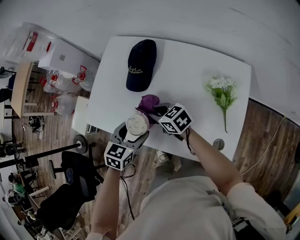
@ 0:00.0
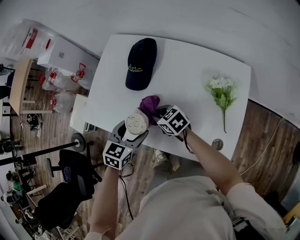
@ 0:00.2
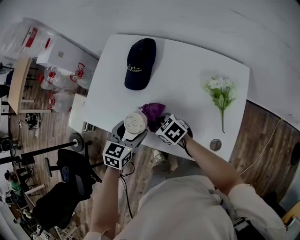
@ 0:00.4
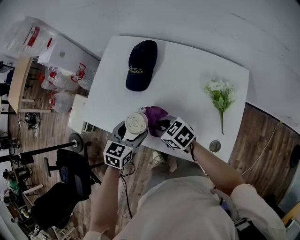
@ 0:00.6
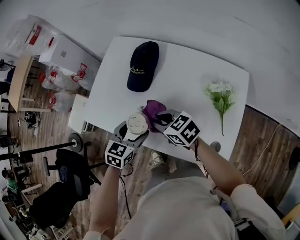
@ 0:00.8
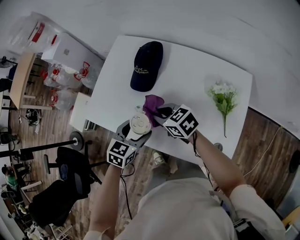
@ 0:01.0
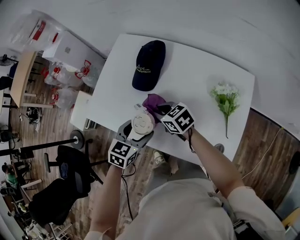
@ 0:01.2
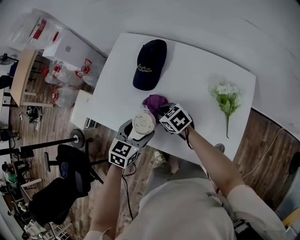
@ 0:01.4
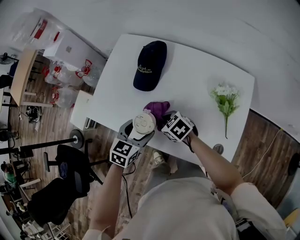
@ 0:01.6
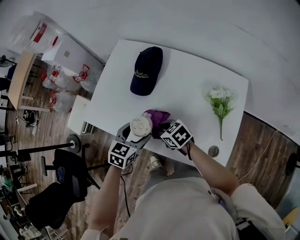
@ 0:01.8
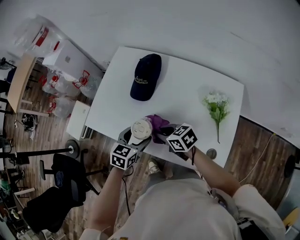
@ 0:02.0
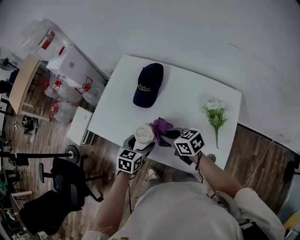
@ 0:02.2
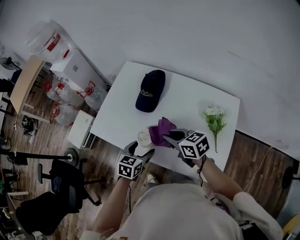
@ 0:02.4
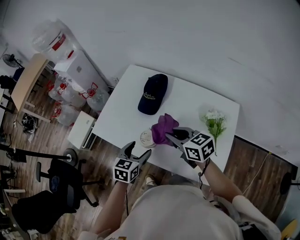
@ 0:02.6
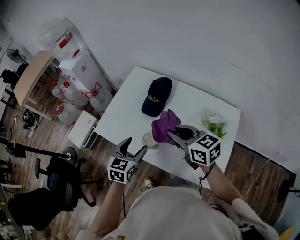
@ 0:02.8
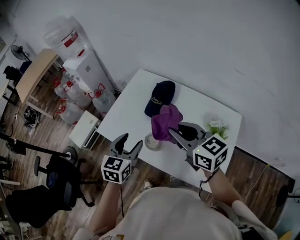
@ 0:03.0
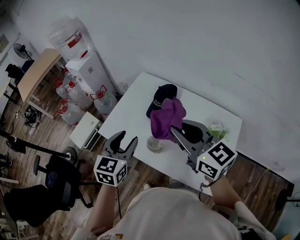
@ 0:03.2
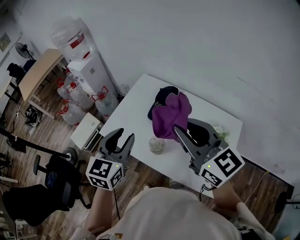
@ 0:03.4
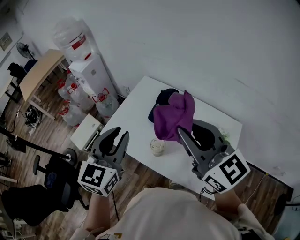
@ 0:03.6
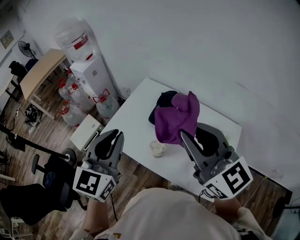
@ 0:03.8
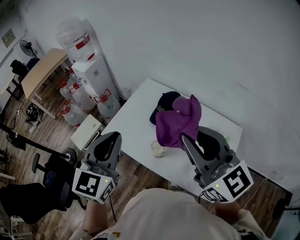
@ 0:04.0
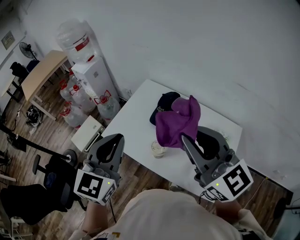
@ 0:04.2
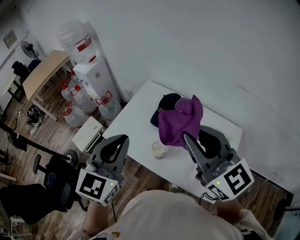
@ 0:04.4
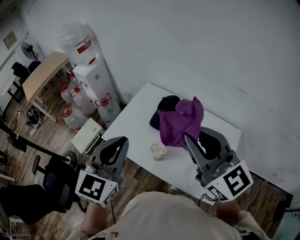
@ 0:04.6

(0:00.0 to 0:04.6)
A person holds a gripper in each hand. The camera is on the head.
0:00.0 - 0:01.6: The right gripper goes up and down, some 10 cm each way, reversing 2 times, and rotates roughly 20 degrees.
0:01.6 - 0:03.0: The left gripper is displaced upward and to the left by some 15 cm, and rotates approximately 20 degrees, while the right gripper goes some 30 cm upward, and points its fingers approximately 30 degrees further upward.
0:03.0 - 0:04.6: The grippers both shift upward by roughly 20 cm. The right gripper changes its angle by approximately 30 degrees, while the left gripper swivels roughly 20 degrees, and closes.

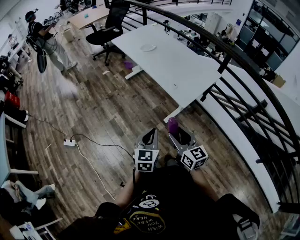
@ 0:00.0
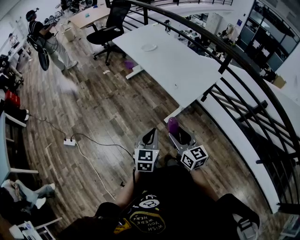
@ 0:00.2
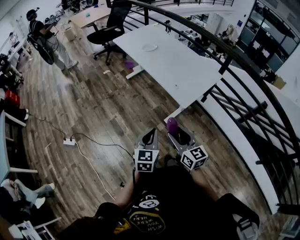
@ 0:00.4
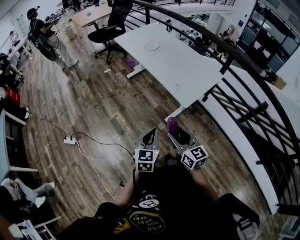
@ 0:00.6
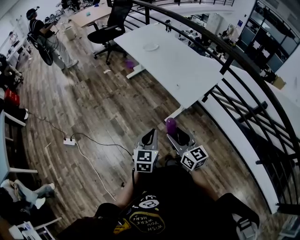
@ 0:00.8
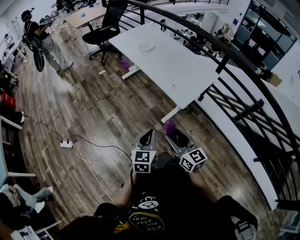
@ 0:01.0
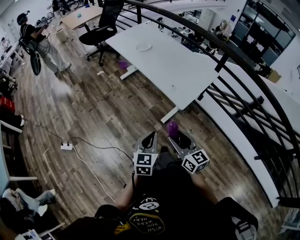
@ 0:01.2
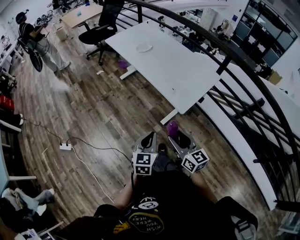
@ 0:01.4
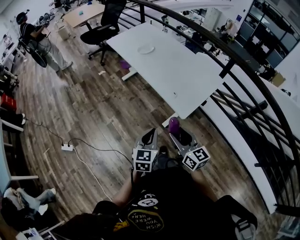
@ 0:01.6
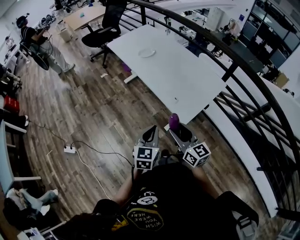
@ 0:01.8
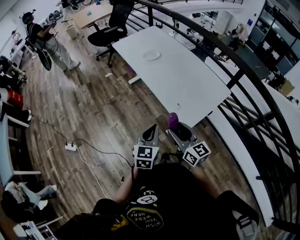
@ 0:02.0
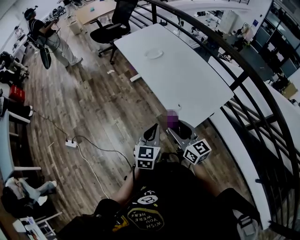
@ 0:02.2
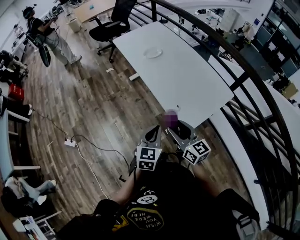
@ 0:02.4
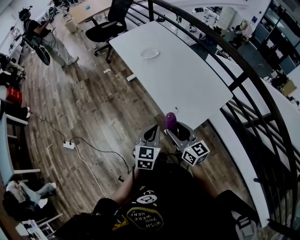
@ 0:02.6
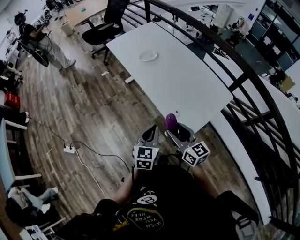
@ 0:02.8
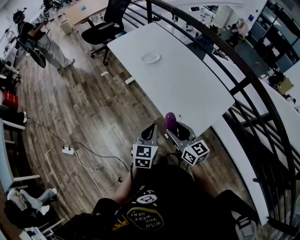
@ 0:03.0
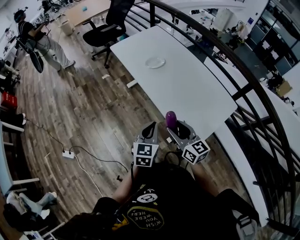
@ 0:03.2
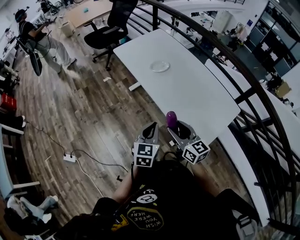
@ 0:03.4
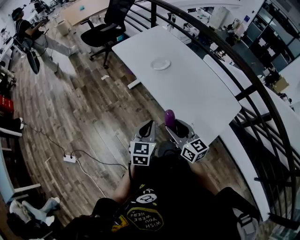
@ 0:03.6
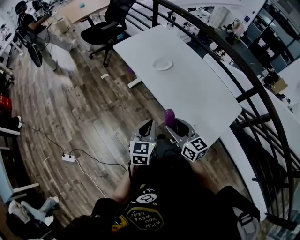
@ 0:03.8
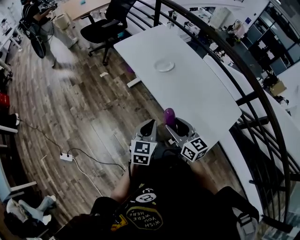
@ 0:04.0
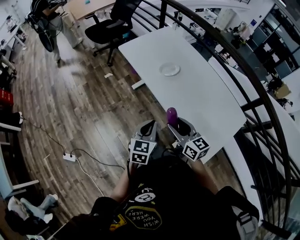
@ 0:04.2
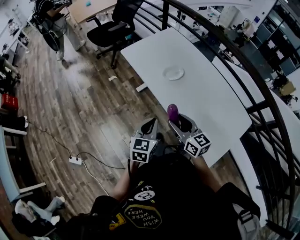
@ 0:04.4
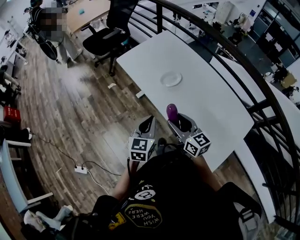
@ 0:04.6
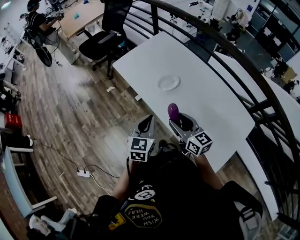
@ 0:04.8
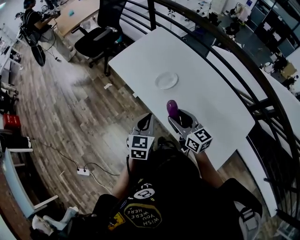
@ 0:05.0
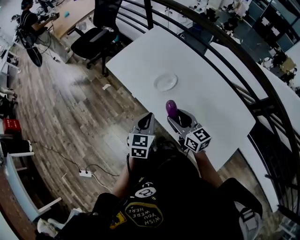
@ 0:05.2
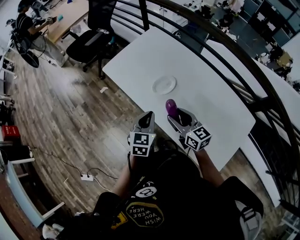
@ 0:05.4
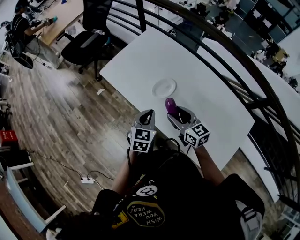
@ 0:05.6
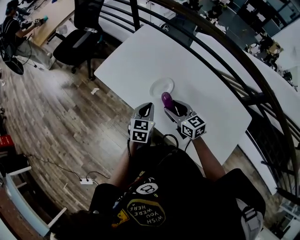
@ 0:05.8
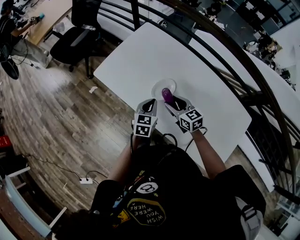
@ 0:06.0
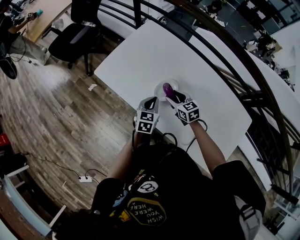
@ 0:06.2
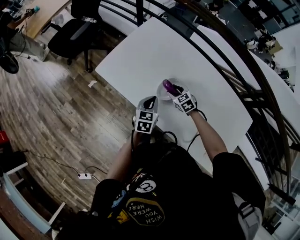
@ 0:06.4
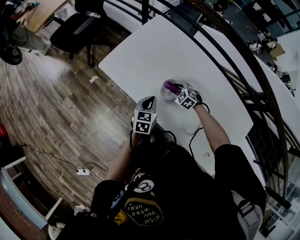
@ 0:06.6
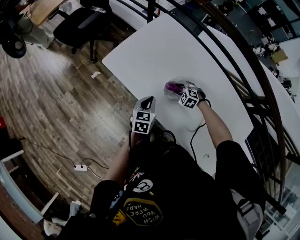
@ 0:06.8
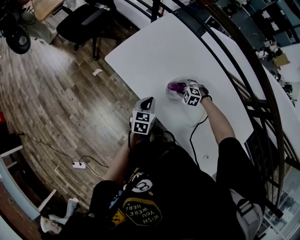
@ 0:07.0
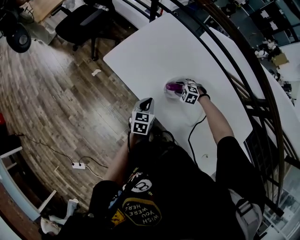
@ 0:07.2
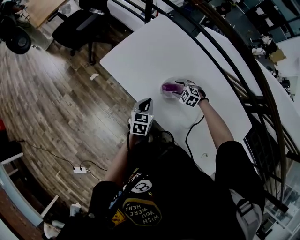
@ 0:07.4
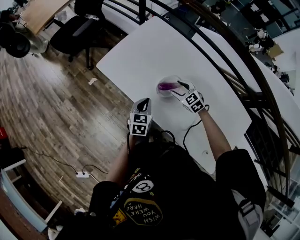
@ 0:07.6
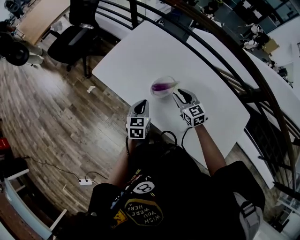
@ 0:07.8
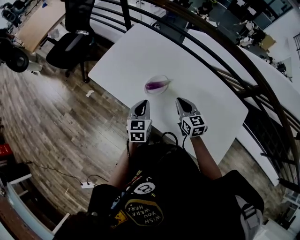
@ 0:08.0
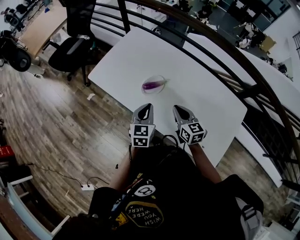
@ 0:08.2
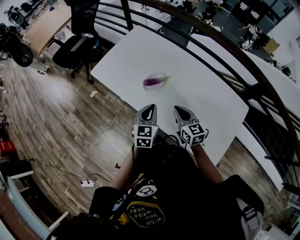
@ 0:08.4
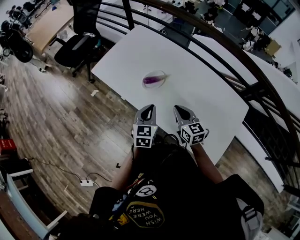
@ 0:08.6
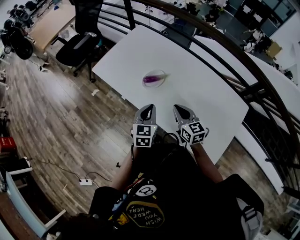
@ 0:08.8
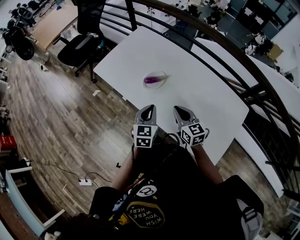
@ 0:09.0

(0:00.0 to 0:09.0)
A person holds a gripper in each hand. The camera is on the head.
0:00.0 - 0:01.6: The grippers both shift forward by approximately 10 cm.
0:01.6 - 0:03.0: Both grippers move forward, some 25 cm.
0:03.0 - 0:04.4: Both grippers travel together forward and to the left, some 30 cm.
0:04.4 - 0:06.0: Both grippers travel together forward, roughly 35 cm.
0:06.0 - 0:07.6: The right gripper goes about 10 cm downward and forward, and swivels roughly 30 degrees. The left gripper moves to the left, roughly 5 cm.
0:07.6 - 0:09.0: The right gripper heads backward and upward, covering some 25 cm, swivels about 40 degrees, and closes up; the left gripper moves backward, to the right and upward, about 20 cm.

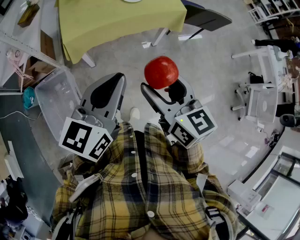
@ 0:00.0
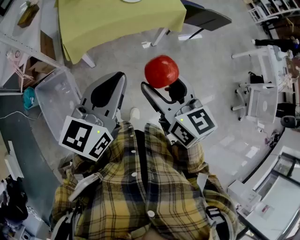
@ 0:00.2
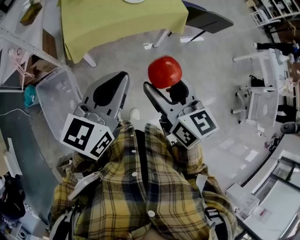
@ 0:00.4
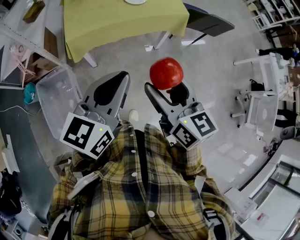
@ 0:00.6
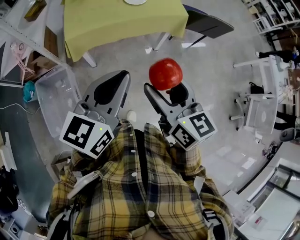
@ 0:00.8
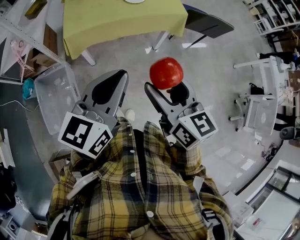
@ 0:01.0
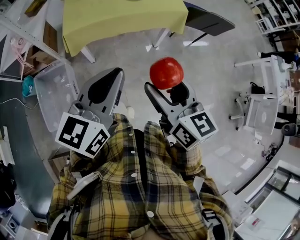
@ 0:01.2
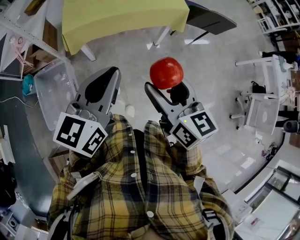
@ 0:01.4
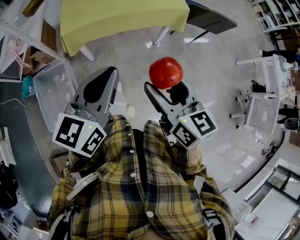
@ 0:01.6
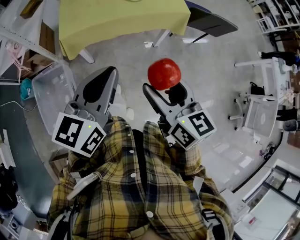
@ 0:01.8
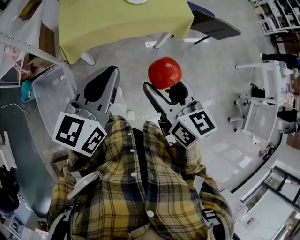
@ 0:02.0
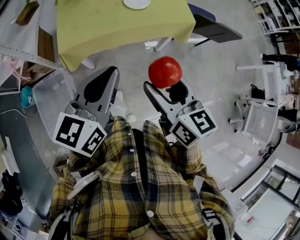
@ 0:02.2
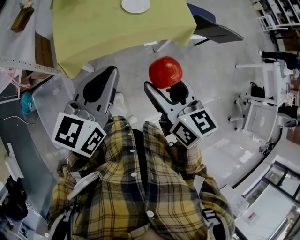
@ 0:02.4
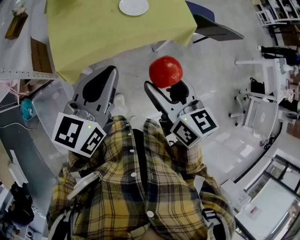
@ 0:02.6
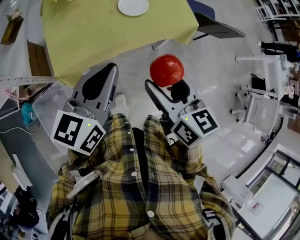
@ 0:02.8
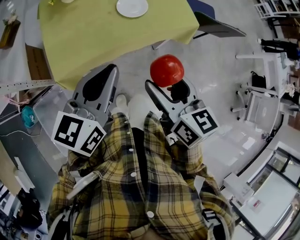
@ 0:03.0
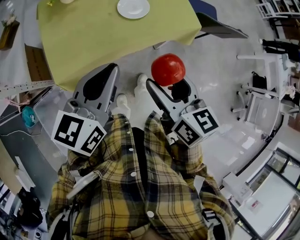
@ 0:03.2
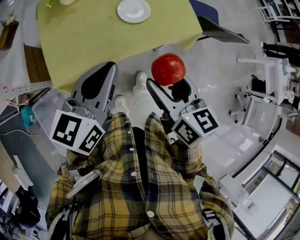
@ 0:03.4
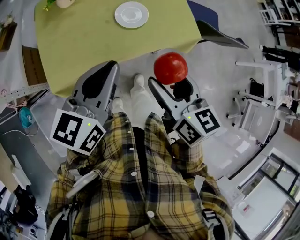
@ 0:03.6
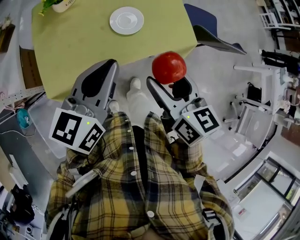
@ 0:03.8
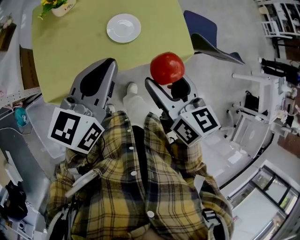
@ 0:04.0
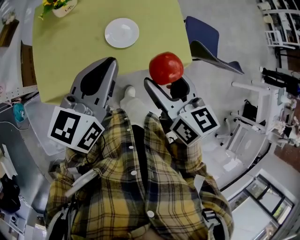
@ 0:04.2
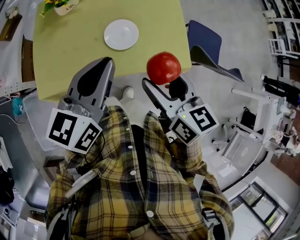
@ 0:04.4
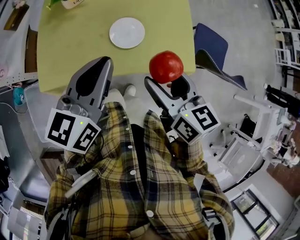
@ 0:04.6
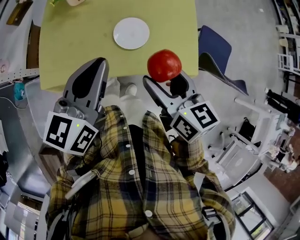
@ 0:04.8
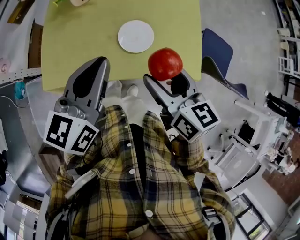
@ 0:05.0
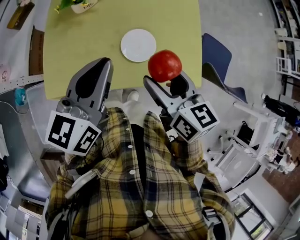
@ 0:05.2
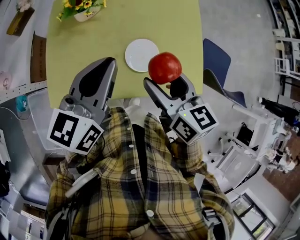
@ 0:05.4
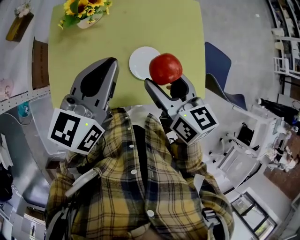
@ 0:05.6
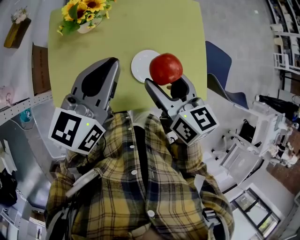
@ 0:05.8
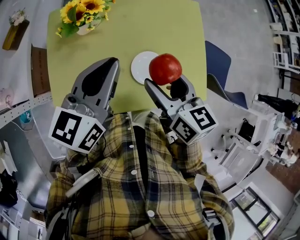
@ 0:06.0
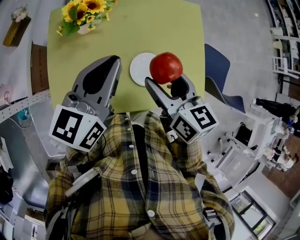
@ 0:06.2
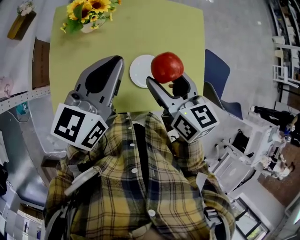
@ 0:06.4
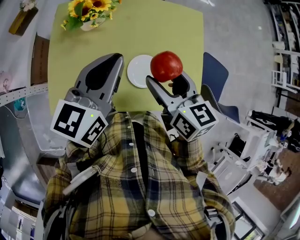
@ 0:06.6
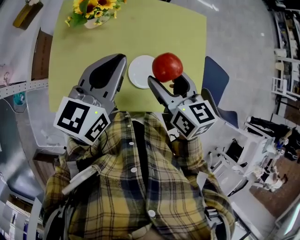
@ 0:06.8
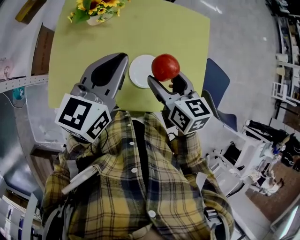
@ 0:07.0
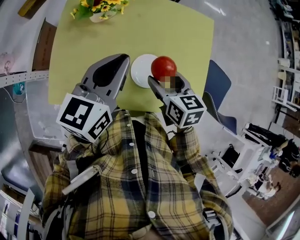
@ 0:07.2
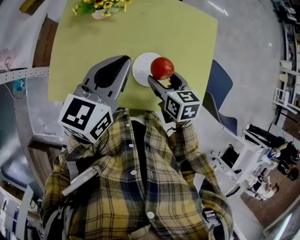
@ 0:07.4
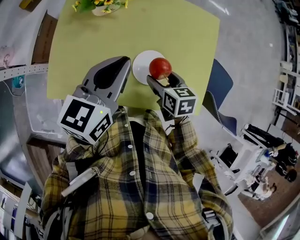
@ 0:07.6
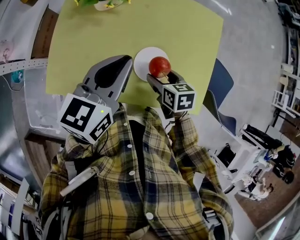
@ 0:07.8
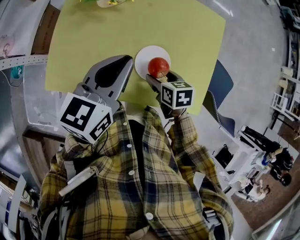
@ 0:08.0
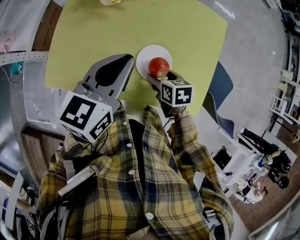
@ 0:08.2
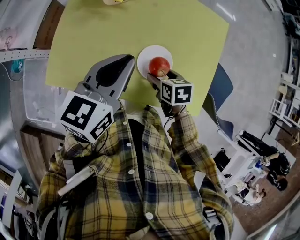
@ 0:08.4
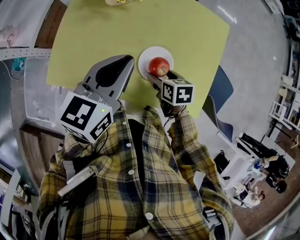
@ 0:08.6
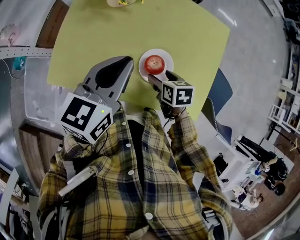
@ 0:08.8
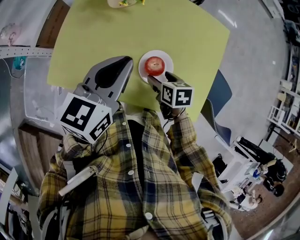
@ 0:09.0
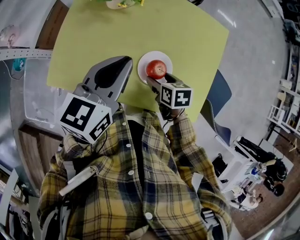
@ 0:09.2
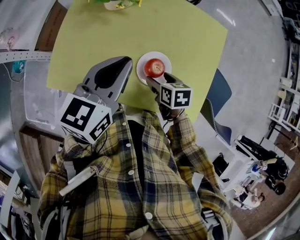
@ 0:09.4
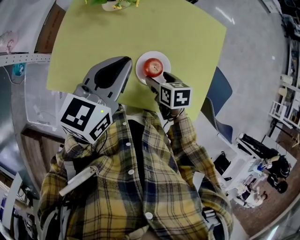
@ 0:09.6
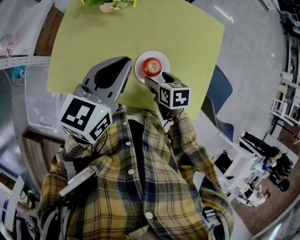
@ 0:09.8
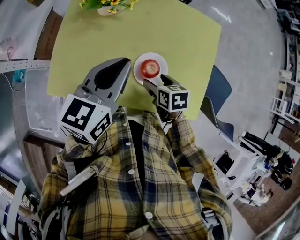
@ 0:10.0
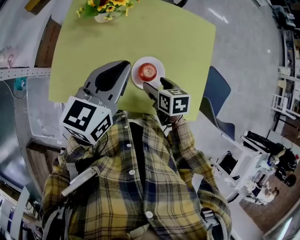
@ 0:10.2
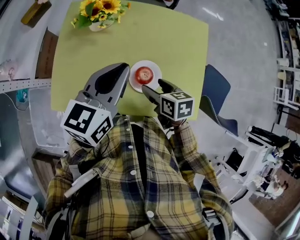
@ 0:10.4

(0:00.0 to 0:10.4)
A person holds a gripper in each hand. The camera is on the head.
0:00.0 - 0:01.4: The right gripper travels to the right by roughly 5 cm.
0:01.4 - 0:03.0: The two grippers go some 30 cm forward.
0:03.0 - 0:04.4: The grippers both shift forward and to the right by approximately 20 cm.
0:04.4 - 0:06.0: Both grippers move forward and to the left, roughly 20 cm.
0:06.0 - 0:07.4: The right gripper is displaced downward by some 15 cm, and turns by about 20 degrees. Meanwhile the left gripper changes place by roughly 5 cm.
0:07.4 - 0:09.0: The right gripper shifts about 5 cm downward.
0:09.0 - 0:10.4: The right gripper goes about 5 cm upward.
